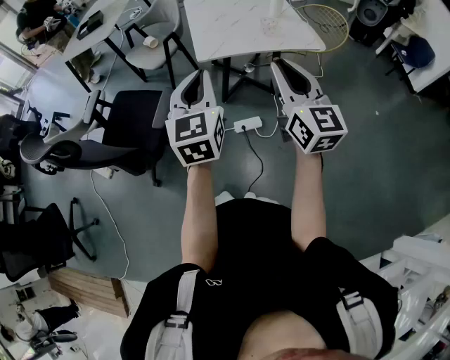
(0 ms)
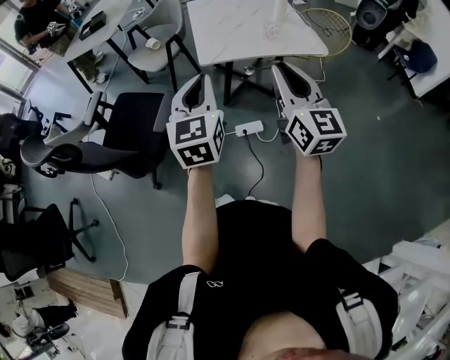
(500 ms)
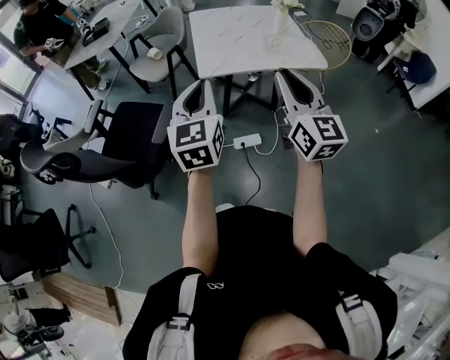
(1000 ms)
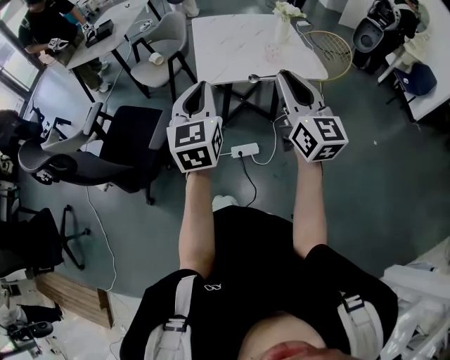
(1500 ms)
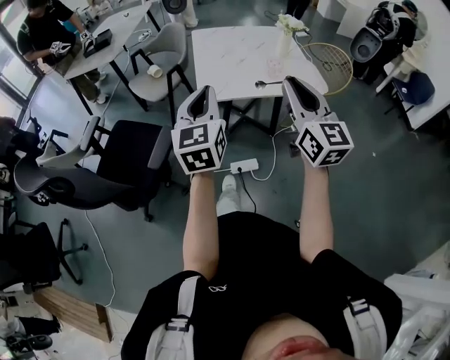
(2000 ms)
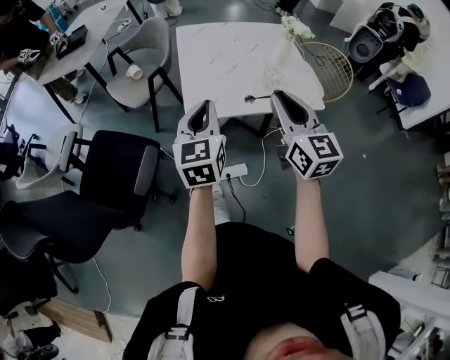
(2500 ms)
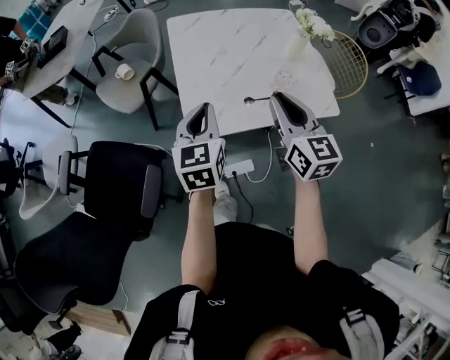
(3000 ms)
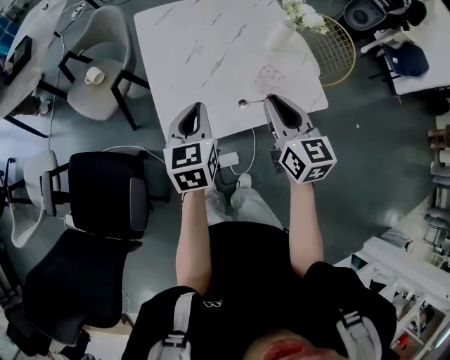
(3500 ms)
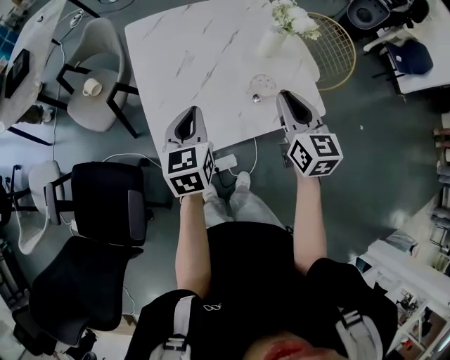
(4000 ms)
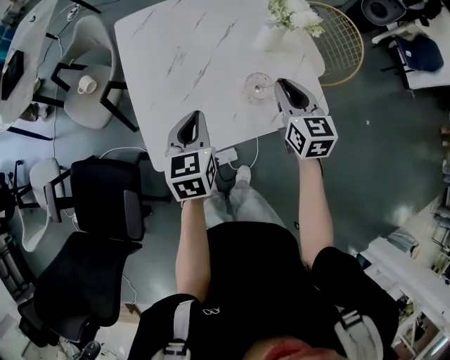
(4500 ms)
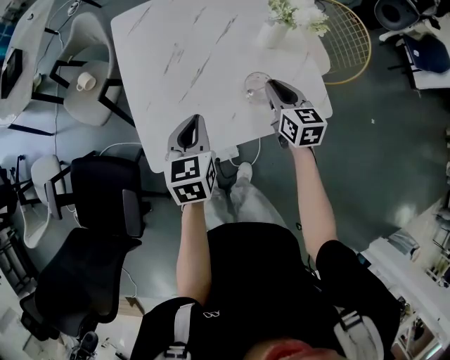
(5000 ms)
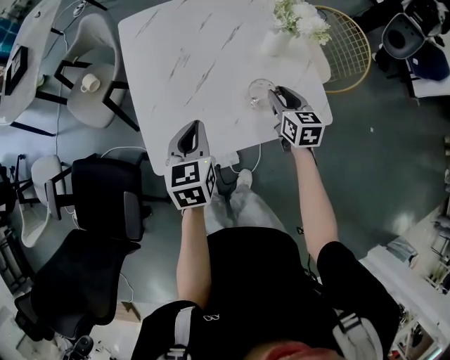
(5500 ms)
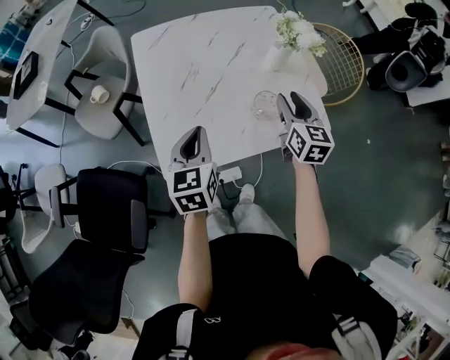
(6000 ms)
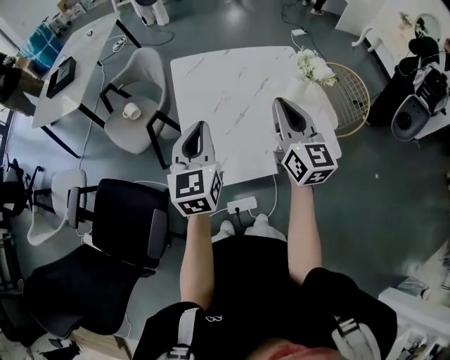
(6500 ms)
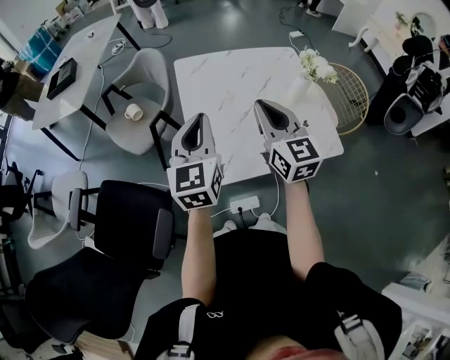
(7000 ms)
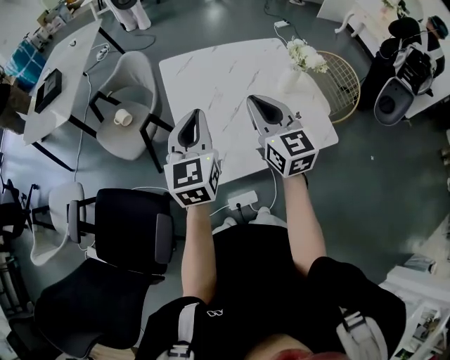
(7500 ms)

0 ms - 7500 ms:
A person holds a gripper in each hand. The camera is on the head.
0 ms - 2000 ms: The two grippers go some 10 cm forward.
2000 ms - 4000 ms: The grippers both shift forward and downward by some 40 cm. The left gripper changes its angle by roughly 30 degrees. Meanwhile the right gripper changes its angle by roughly 30 degrees.
4000 ms - 5500 ms: The left gripper is displaced downward by approximately 5 cm; the right gripper shifts approximately 20 cm downward and forward.
5500 ms - 7500 ms: The left gripper is displaced upward and to the left by some 20 cm, and changes its angle by roughly 30 degrees, while the right gripper heads upward and to the left, covering some 35 cm, changes its angle by some 30 degrees, and closes.

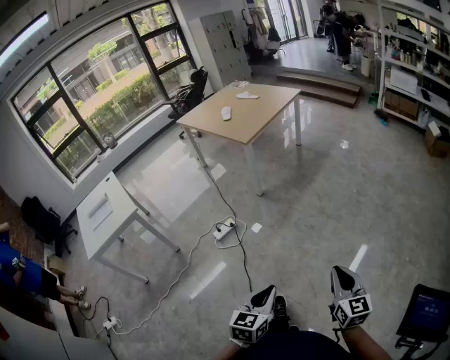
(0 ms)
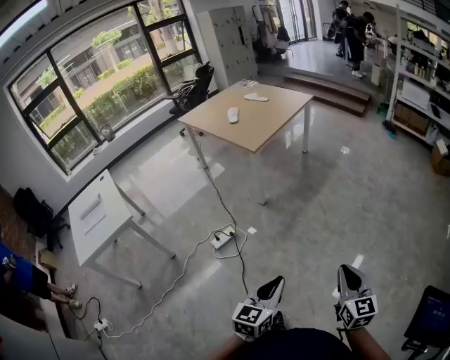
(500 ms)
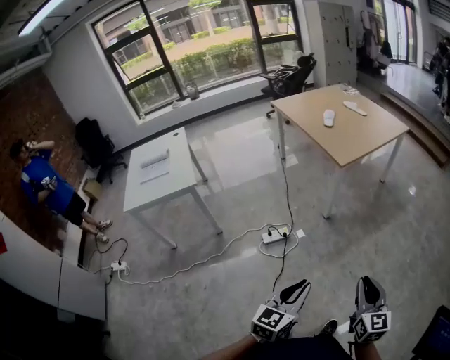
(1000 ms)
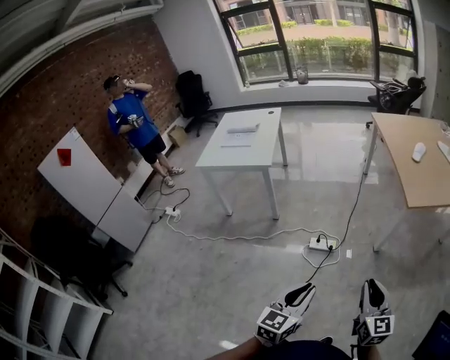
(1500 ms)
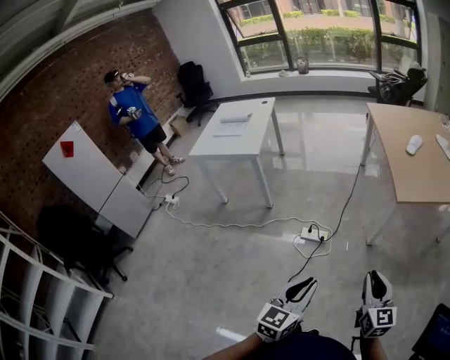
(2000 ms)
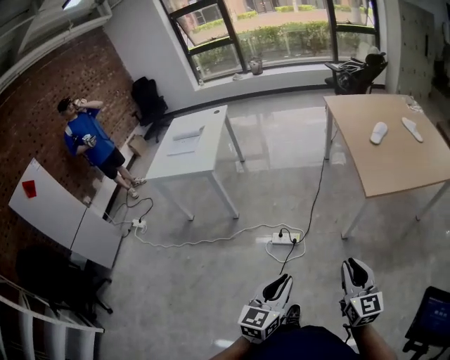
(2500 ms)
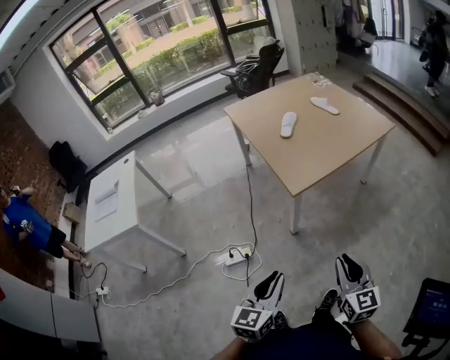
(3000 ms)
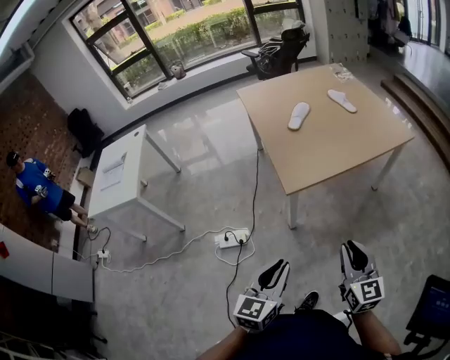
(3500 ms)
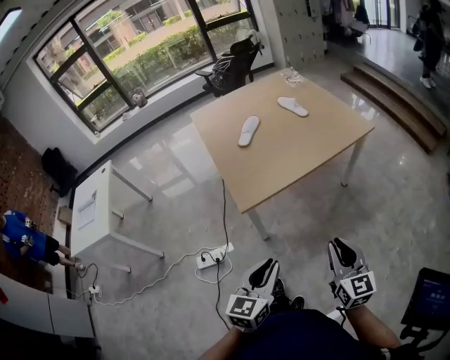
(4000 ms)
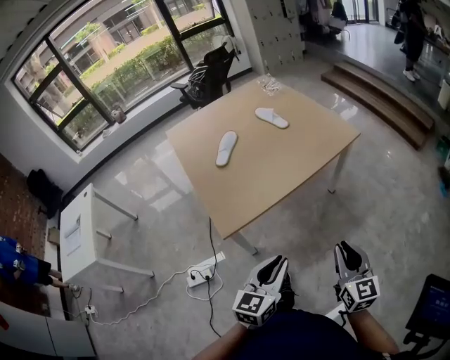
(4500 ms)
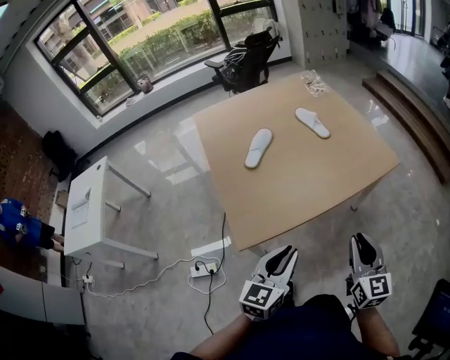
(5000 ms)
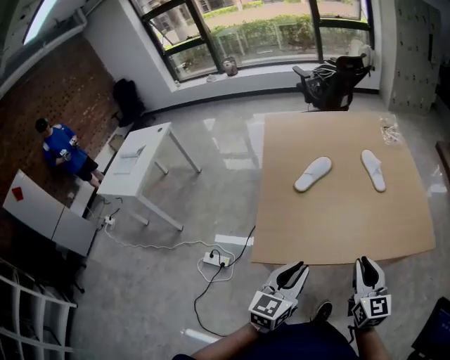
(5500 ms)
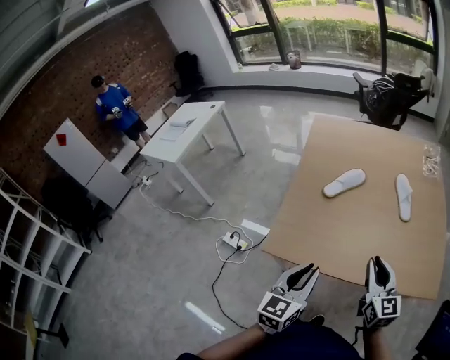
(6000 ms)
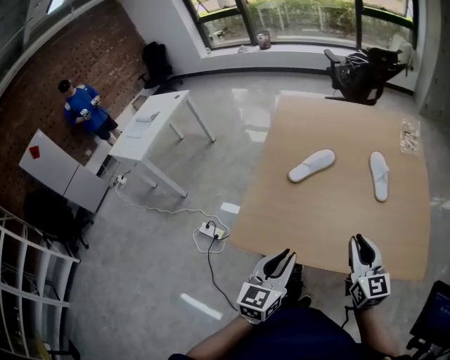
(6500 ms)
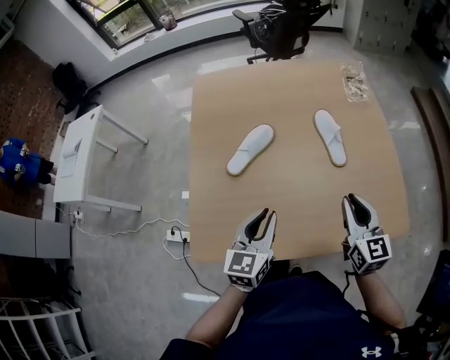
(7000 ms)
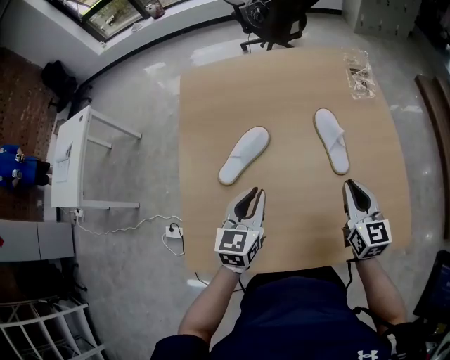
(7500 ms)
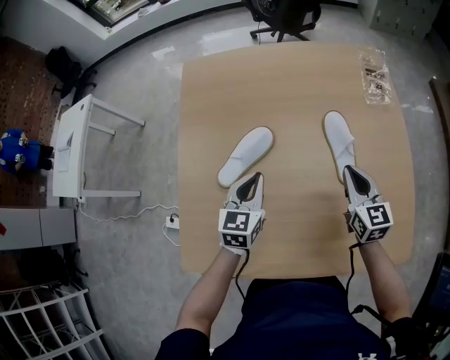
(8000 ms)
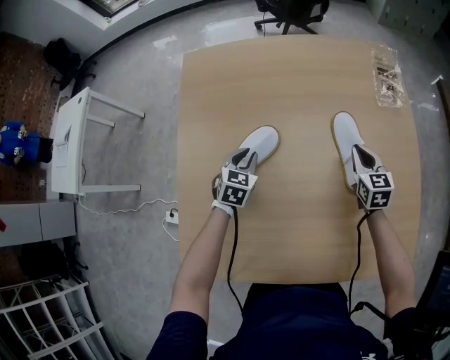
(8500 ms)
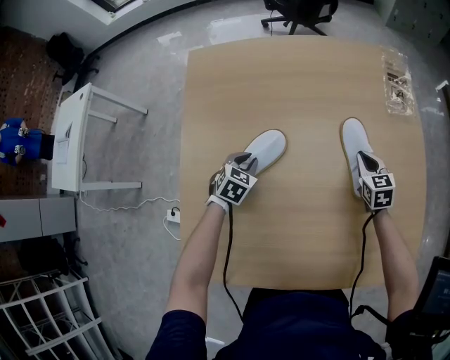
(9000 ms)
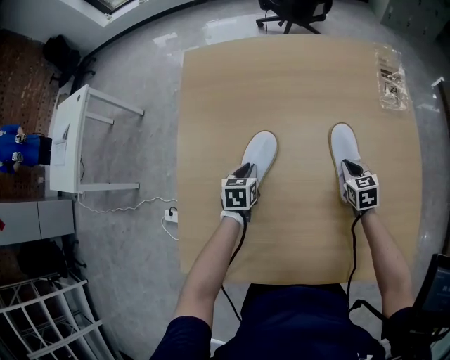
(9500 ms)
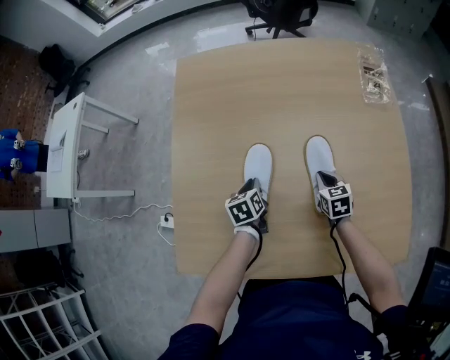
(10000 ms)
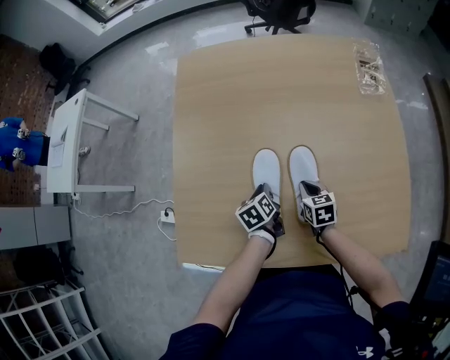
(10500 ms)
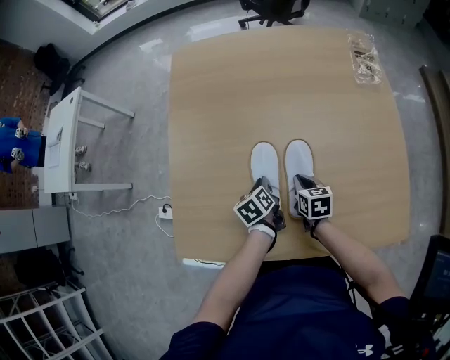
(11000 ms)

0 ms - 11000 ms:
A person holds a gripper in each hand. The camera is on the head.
0 ms - 2000 ms: The right gripper changes place by approximately 50 cm, and rotates approximately 50 degrees, while the left gripper shifts by roughly 35 cm, and changes its angle by some 50 degrees.
2000 ms - 3500 ms: Both grippers travel together to the right and forward, roughly 35 cm.
3500 ms - 5500 ms: The right gripper shifts by about 40 cm. The left gripper ends up some 40 cm from where it was.
5500 ms - 7500 ms: The left gripper shifts some 35 cm forward. The right gripper is displaced forward and to the right by about 35 cm.
7500 ms - 9000 ms: Both grippers move downward and forward, about 25 cm. The right gripper turns by about 30 degrees. The left gripper tips its fingers downward by some 30 degrees.
9000 ms - 11000 ms: The left gripper heads backward, covering about 15 cm, and rotates around the line of its fingers by about 70 degrees, counterclockwise from behind. The right gripper moves to the left and backward, roughly 25 cm, and rotates some 20 degrees.

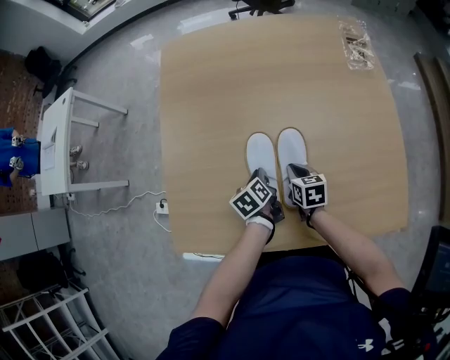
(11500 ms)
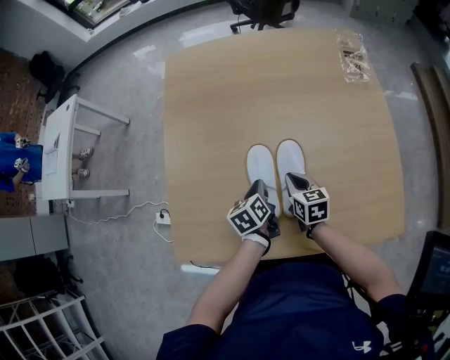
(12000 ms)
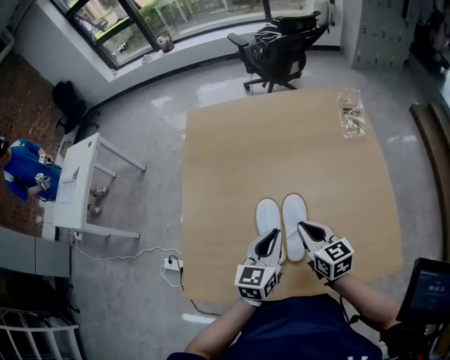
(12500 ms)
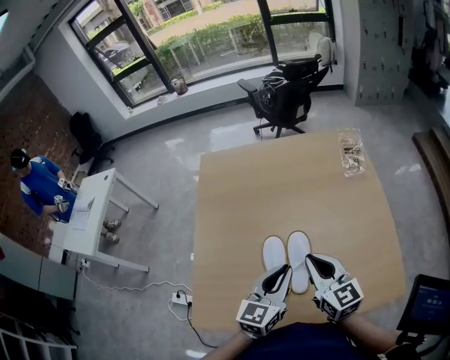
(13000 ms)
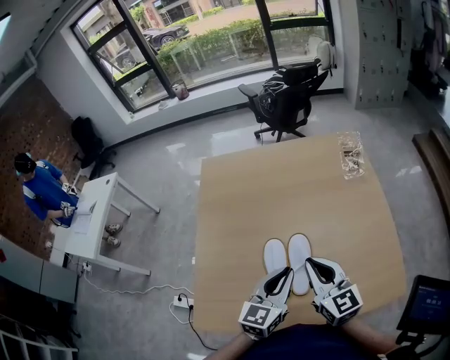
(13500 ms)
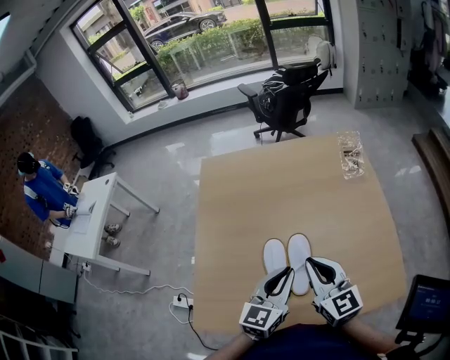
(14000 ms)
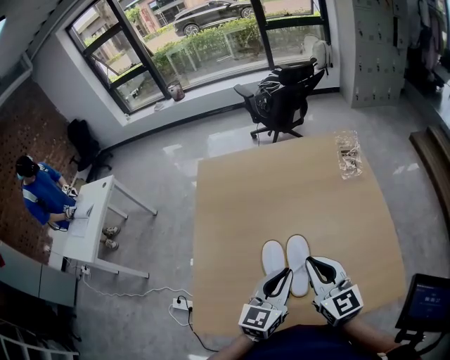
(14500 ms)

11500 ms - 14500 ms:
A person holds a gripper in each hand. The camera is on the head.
11500 ms - 13000 ms: The two grippers go about 30 cm upward. The right gripper tilts its fingers approximately 40 degrees upward. The left gripper tips its fingers upward by about 30 degrees.
13000 ms - 14500 ms: The grippers move only a little.

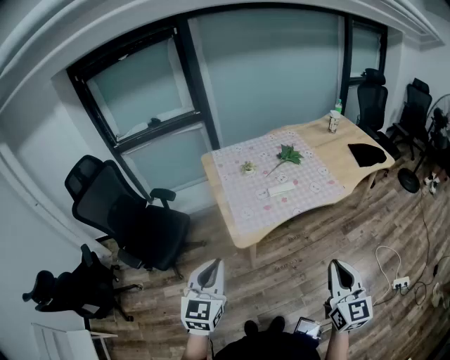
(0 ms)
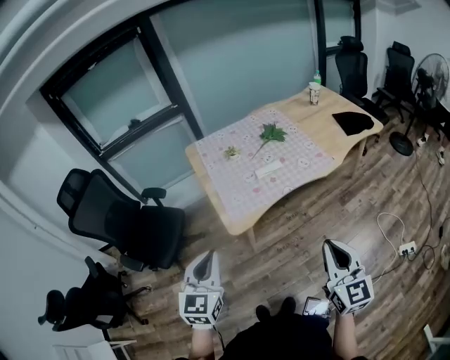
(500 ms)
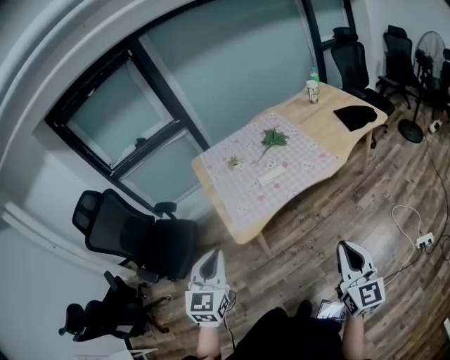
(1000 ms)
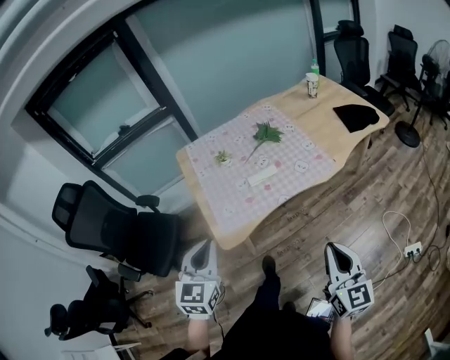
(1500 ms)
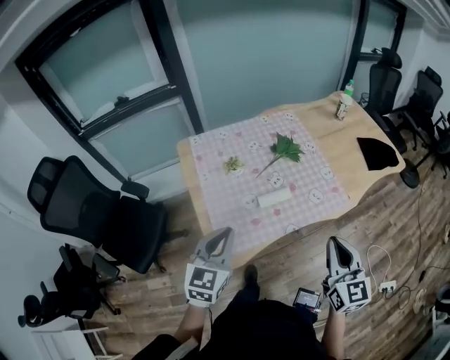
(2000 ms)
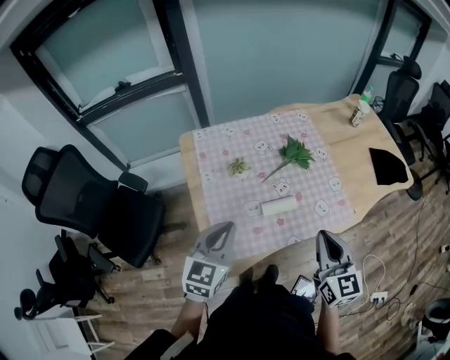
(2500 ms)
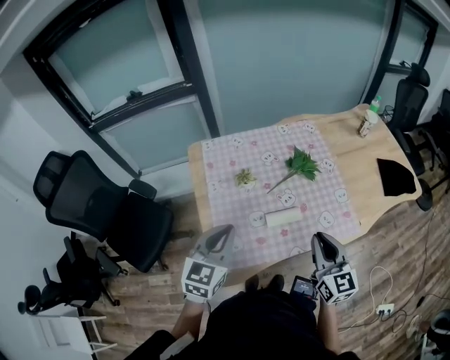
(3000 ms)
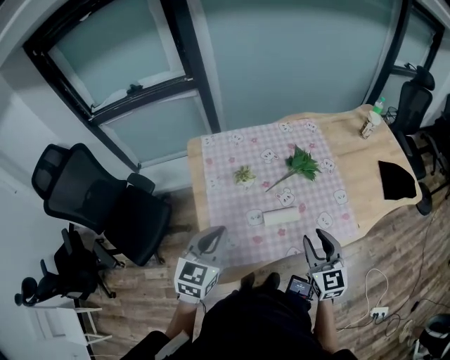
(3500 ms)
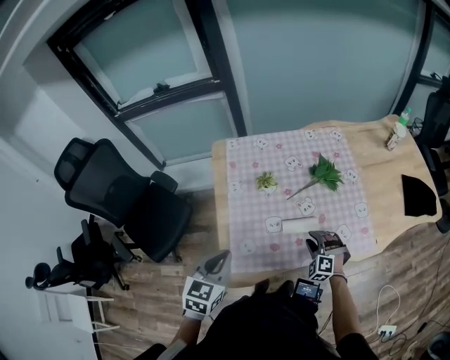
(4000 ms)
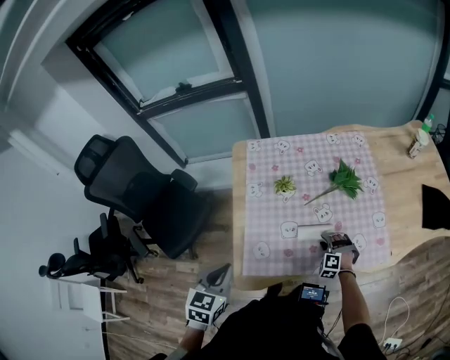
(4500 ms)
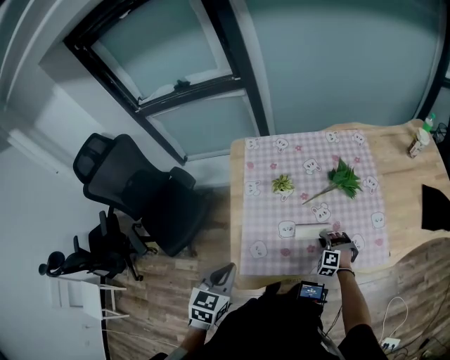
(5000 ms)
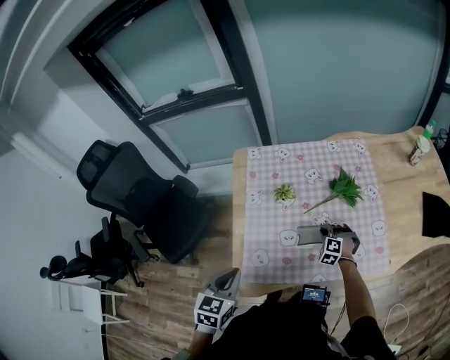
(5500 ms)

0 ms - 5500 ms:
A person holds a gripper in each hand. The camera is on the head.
0 ms - 2000 ms: Both grippers travel together forward, roughly 30 cm.
2000 ms - 3500 ms: The right gripper goes approximately 20 cm forward and downward, and opens. Meanwhile the left gripper is displaced forward by about 10 cm.
3500 ms - 5500 ms: The right gripper moves downward and forward, about 30 cm, twists approximately 60 degrees counterclockwise, seen from behind, and closes its fingers; the left gripper shifts about 10 cm downward and backward, and turns by roughly 20 degrees.
